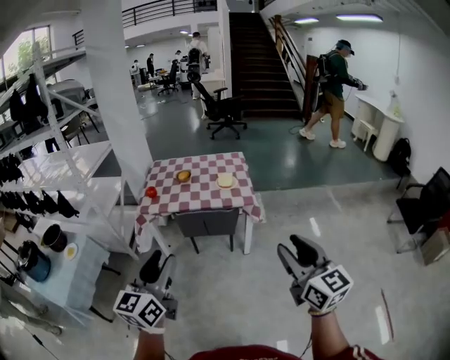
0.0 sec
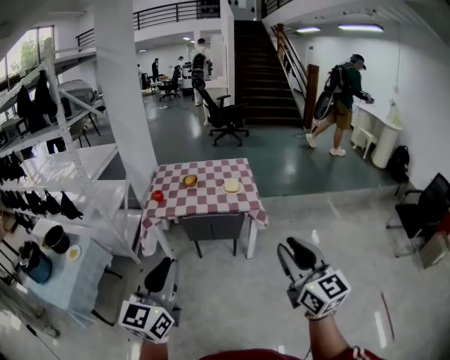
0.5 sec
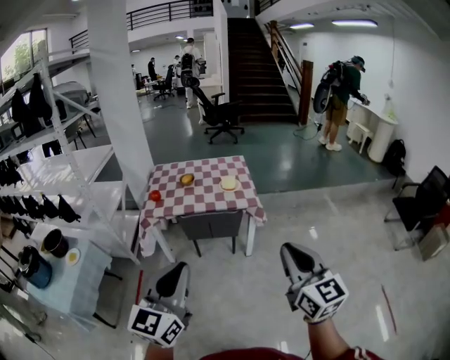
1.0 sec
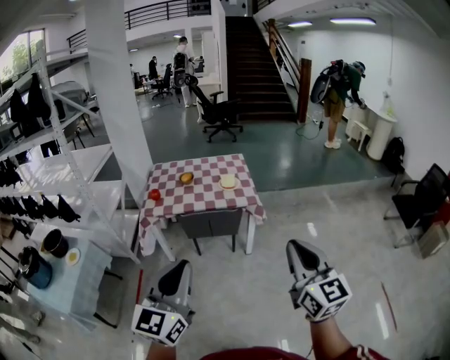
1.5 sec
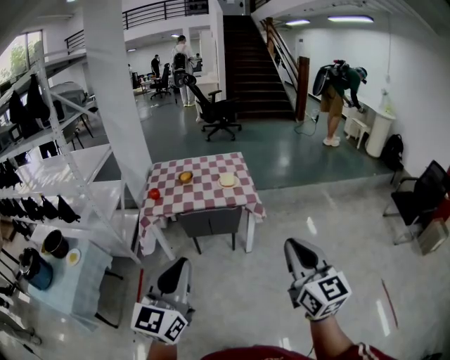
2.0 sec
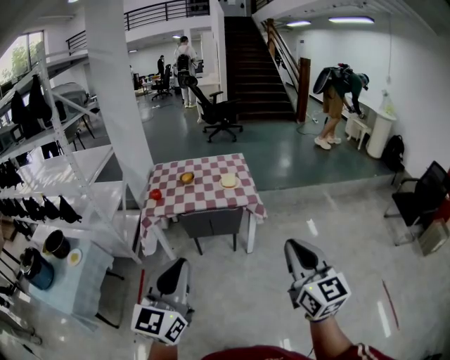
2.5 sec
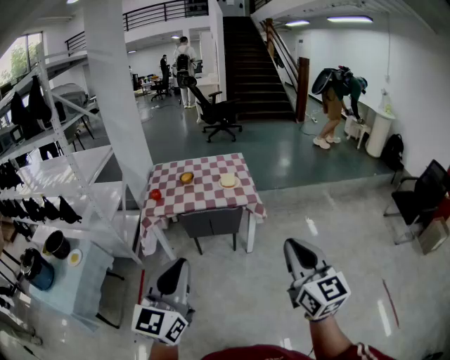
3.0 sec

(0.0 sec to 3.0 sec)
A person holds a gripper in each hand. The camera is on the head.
0.0 sec - 1.5 sec: The left gripper moves roughly 5 cm, and closes its fingers. Meanwhile the right gripper moves roughly 5 cm, and closes up.
1.5 sec - 3.0 sec: There are only small adjustments of the grippers.

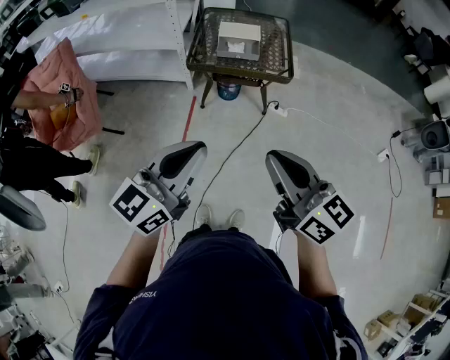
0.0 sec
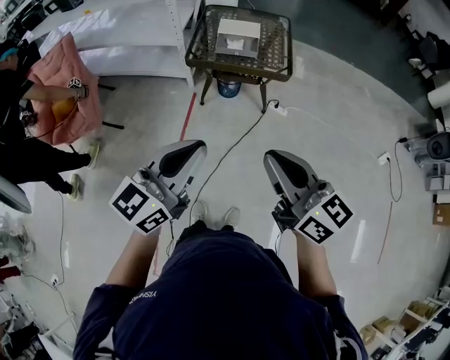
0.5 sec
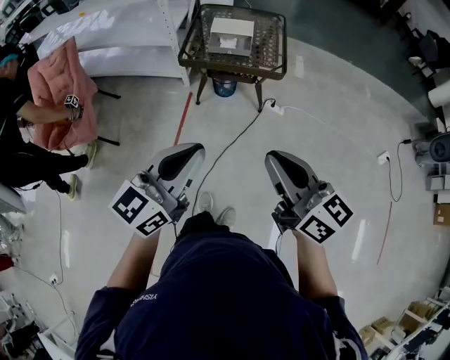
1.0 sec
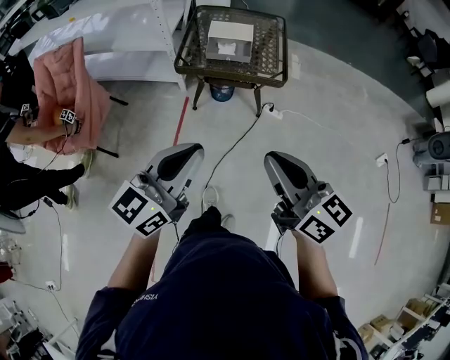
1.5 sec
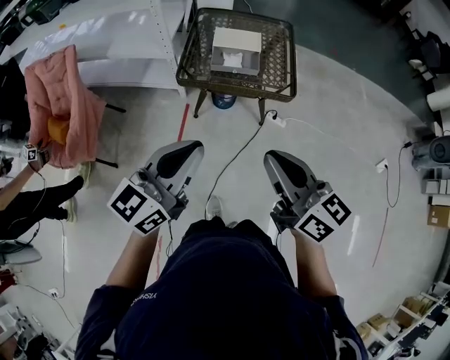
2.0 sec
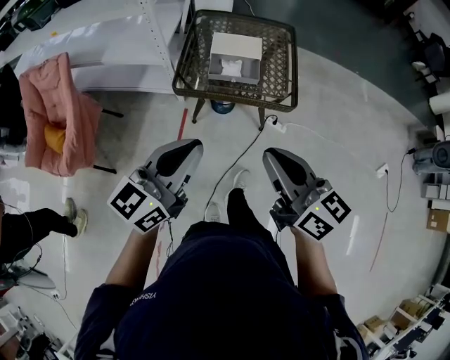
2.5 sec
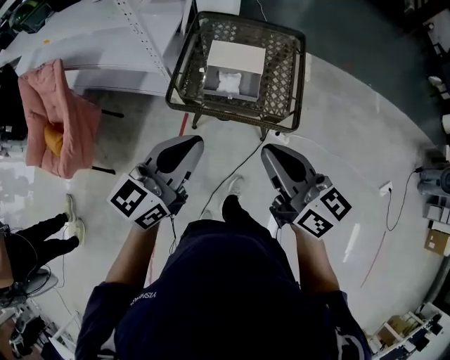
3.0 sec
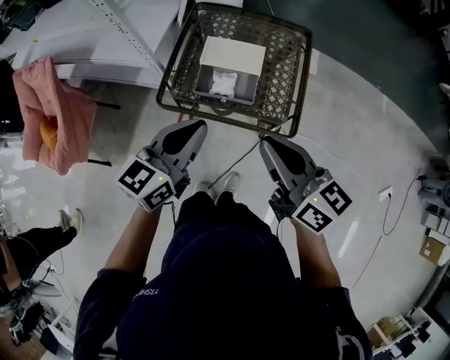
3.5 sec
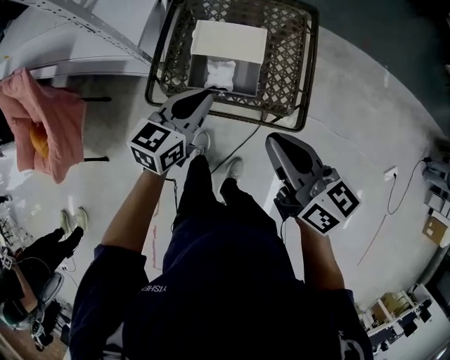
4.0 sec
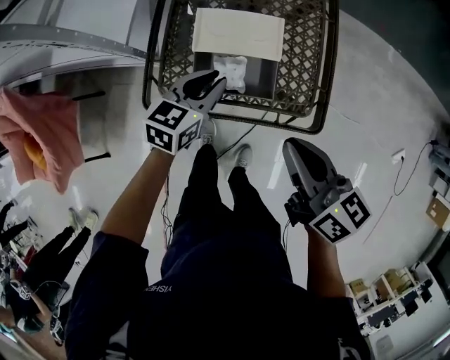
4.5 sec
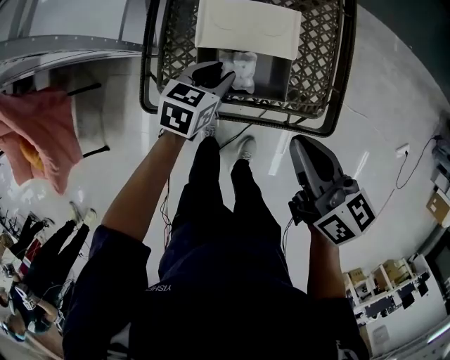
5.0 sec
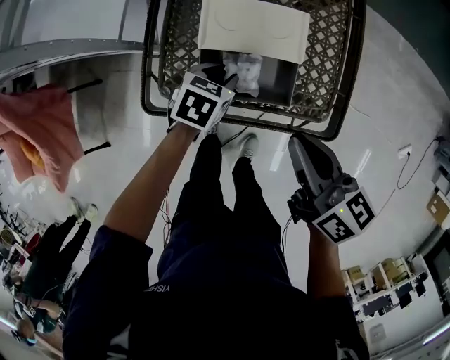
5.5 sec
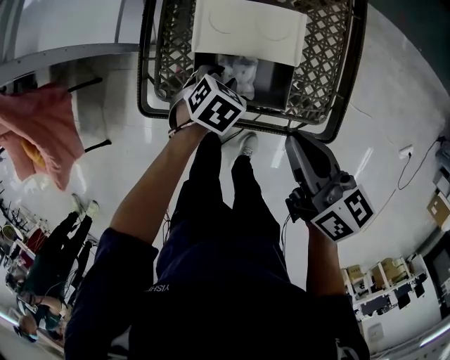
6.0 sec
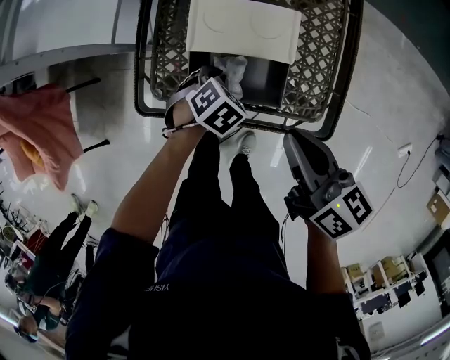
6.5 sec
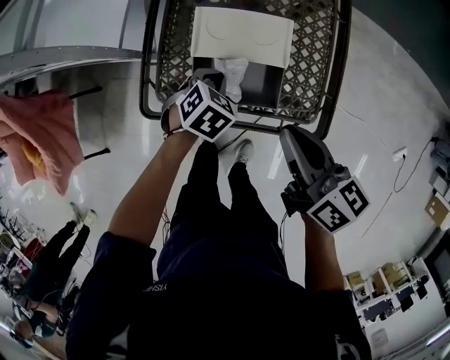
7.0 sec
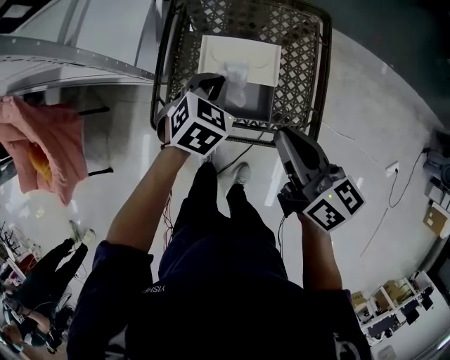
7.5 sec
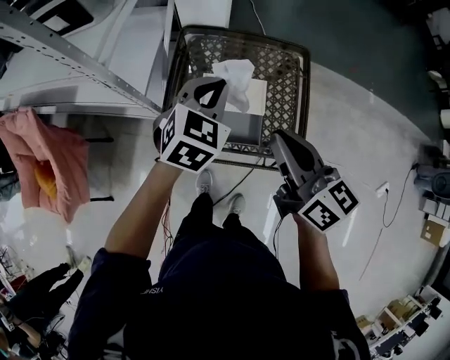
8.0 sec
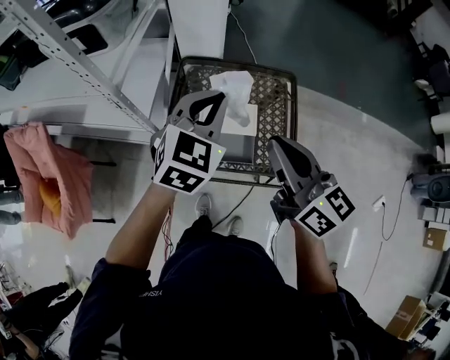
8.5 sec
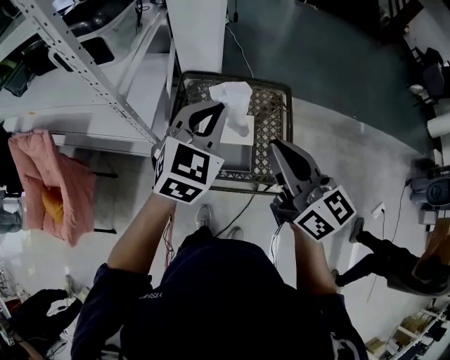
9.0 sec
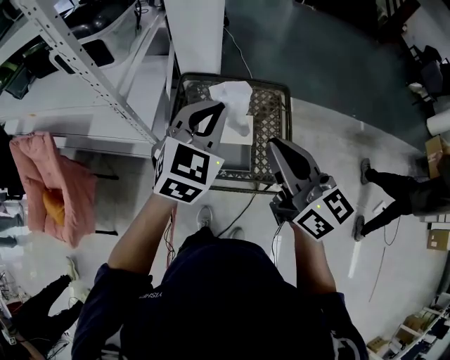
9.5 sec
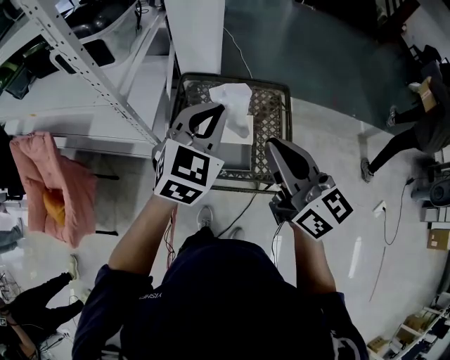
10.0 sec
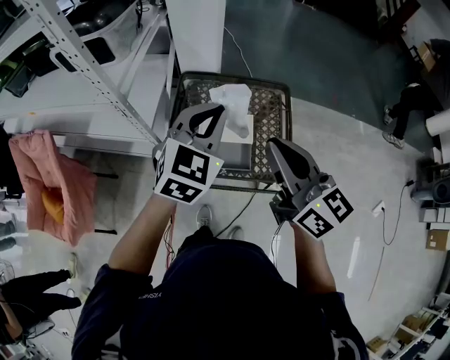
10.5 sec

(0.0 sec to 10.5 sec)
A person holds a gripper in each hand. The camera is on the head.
0.0 sec - 2.0 sec: The two grippers go about 15 cm forward.
2.0 sec - 4.0 sec: The left gripper heads forward and downward, covering roughly 40 cm, and rotates about 20 degrees. Meanwhile the right gripper travels forward by about 30 cm.
4.0 sec - 6.5 sec: The right gripper is displaced downward by some 15 cm. The left gripper shifts approximately 25 cm downward, angles its fingers downward, by approximately 50 degrees, and opens, then closes again.
6.5 sec - 8.5 sec: The right gripper moves upward, some 25 cm, and turns by roughly 30 degrees; the left gripper goes about 40 cm upward, and points its fingers about 50 degrees further upward.
8.5 sec - 10.5 sec: The left gripper shifts by some 5 cm, while the right gripper shifts by approximately 5 cm.

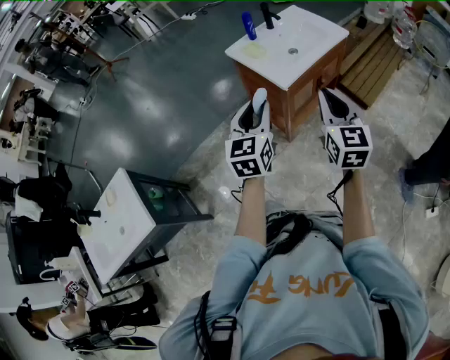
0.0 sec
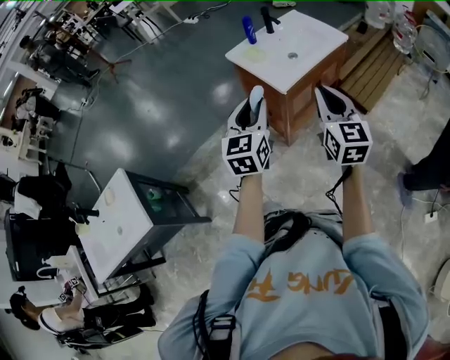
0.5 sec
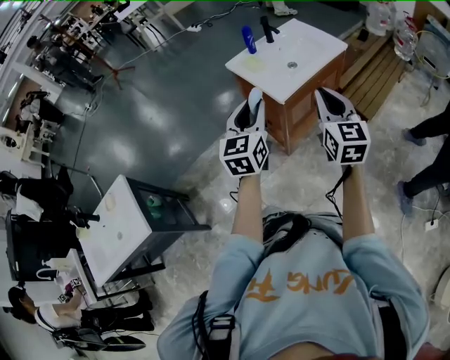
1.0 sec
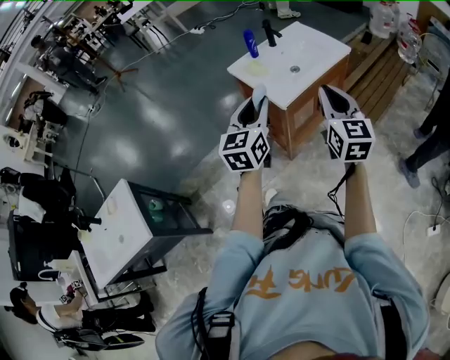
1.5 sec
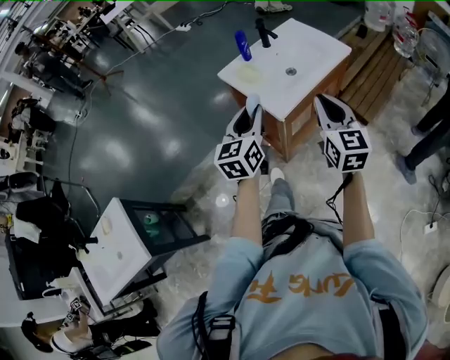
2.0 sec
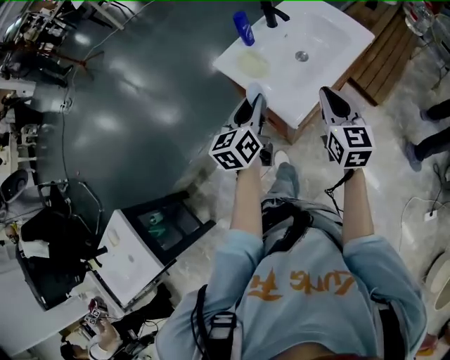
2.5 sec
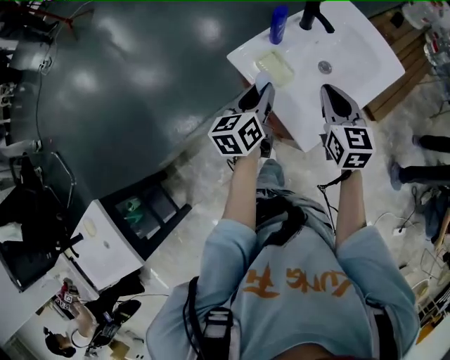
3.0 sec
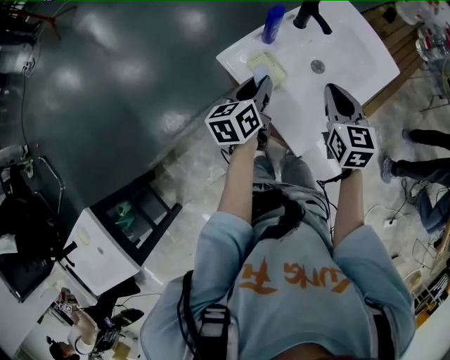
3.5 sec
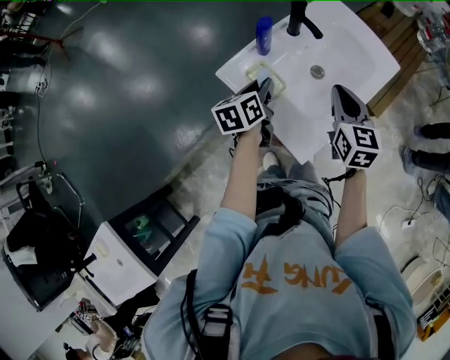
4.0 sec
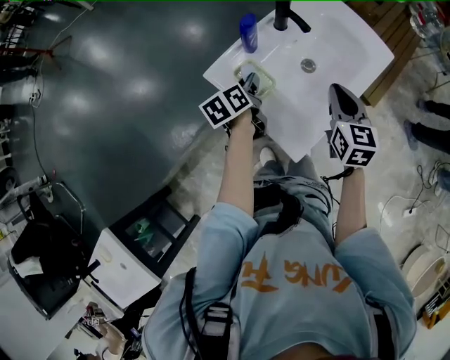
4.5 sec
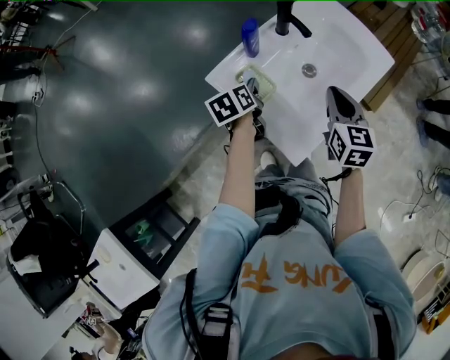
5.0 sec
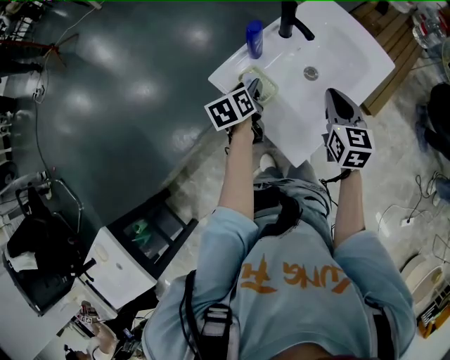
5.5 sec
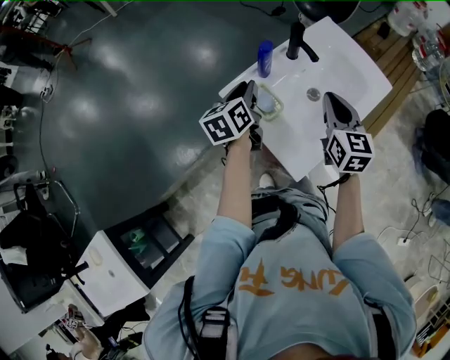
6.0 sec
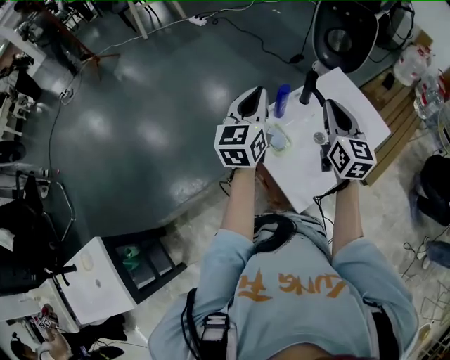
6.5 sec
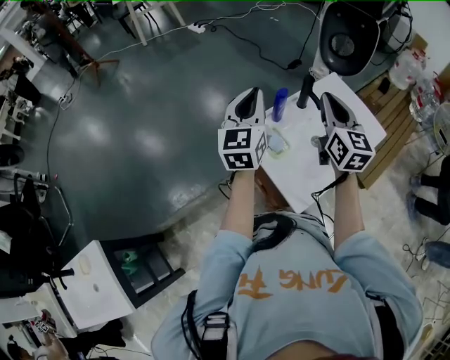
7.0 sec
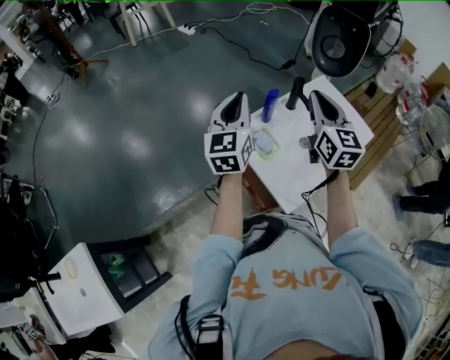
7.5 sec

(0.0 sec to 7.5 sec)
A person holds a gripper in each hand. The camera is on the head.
0.0 sec - 2.0 sec: Both grippers move forward, approximately 15 cm.
2.0 sec - 4.0 sec: The two grippers go some 35 cm forward and downward. The left gripper changes its angle by about 40 degrees.
4.0 sec - 5.5 sec: The grippers stay close to where they were, moving slightly.
5.5 sec - 7.5 sec: The right gripper travels upward and to the left by some 20 cm, and changes its angle by some 30 degrees. Meanwhile the left gripper travels upward by about 25 cm, tilts its fingers about 40 degrees upward, and closes its fingers.

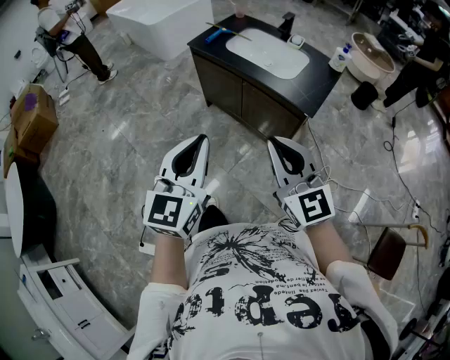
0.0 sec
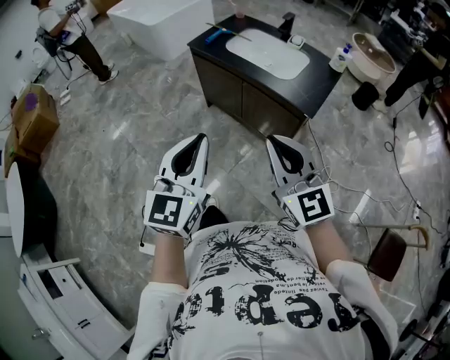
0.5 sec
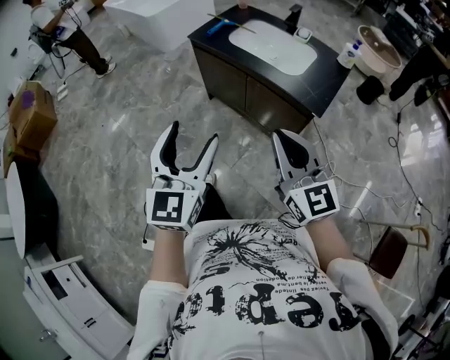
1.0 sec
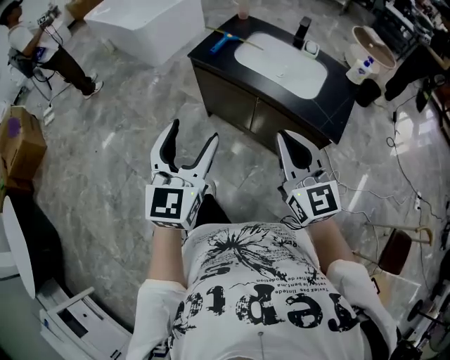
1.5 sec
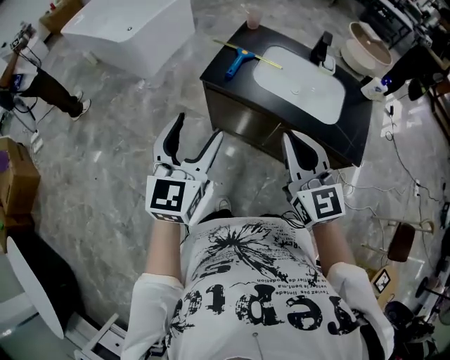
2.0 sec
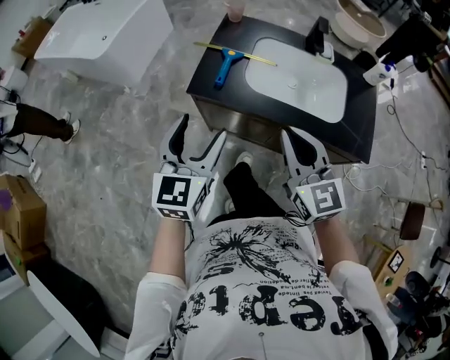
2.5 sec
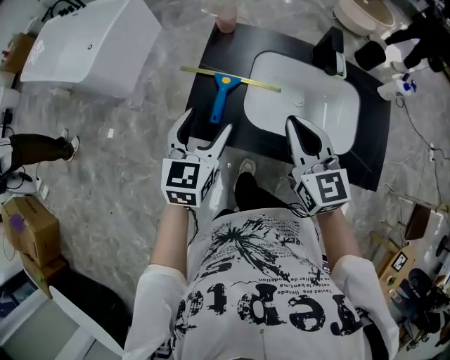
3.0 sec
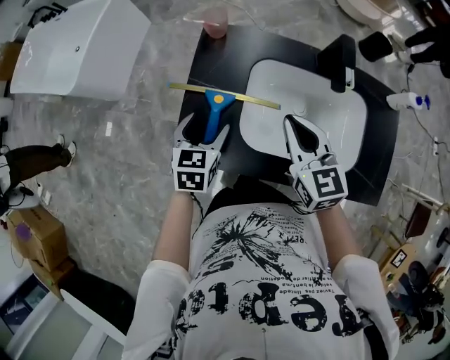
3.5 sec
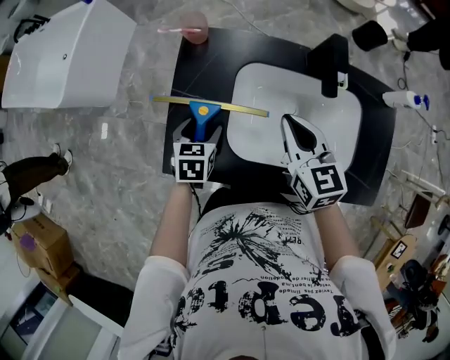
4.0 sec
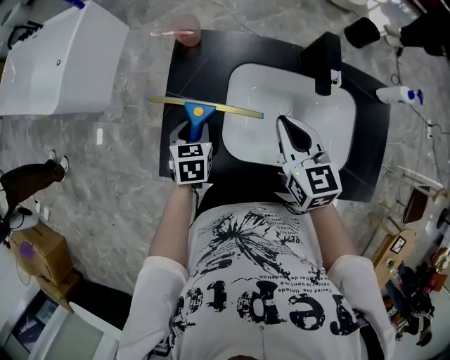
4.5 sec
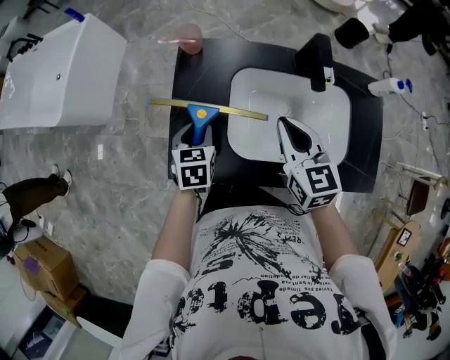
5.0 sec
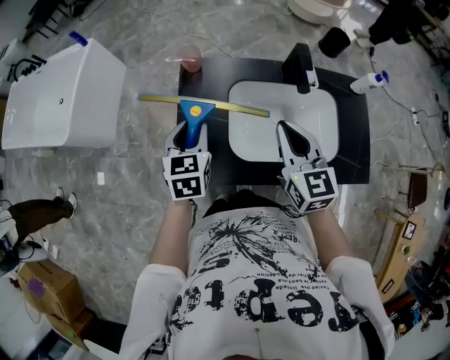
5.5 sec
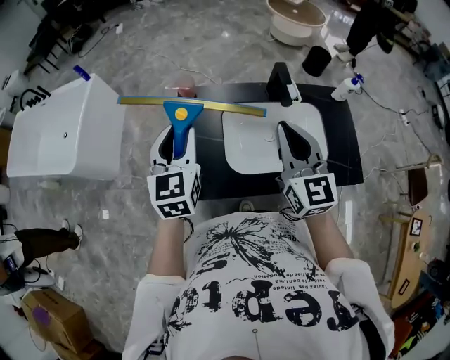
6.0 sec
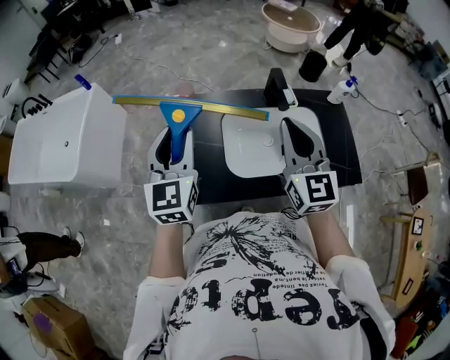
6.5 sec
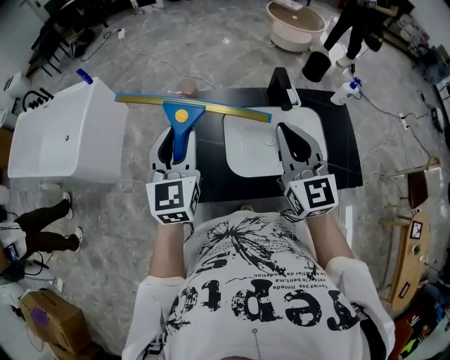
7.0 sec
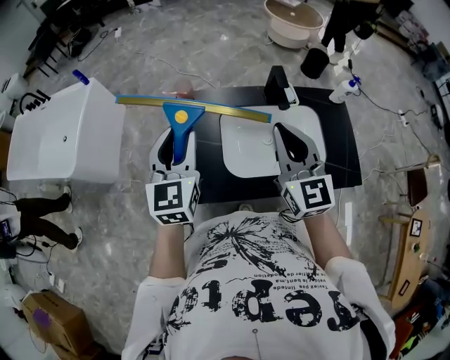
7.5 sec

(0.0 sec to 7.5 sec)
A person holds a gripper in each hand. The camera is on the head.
0.0 sec - 2.0 sec: Both grippers are carried forward and to the left, some 50 cm. The left gripper opens its fingers.
2.0 sec - 4.0 sec: Both grippers are carried forward, some 50 cm. The right gripper changes its angle by roughly 30 degrees; the left gripper is displaced downward by about 35 cm, and angles its fingers downward, by roughly 50 degrees.
4.0 sec - 5.5 sec: The left gripper shifts approximately 20 cm upward, and closes up; the right gripper travels upward and backward by some 15 cm.
5.5 sec - 7.5 sec: Both grippers travel together upward, about 15 cm. The left gripper swivels some 30 degrees.
